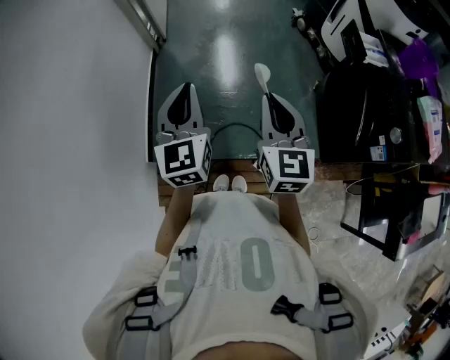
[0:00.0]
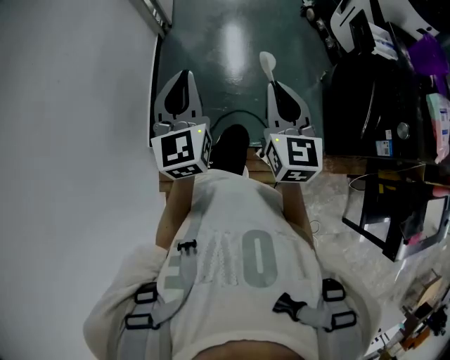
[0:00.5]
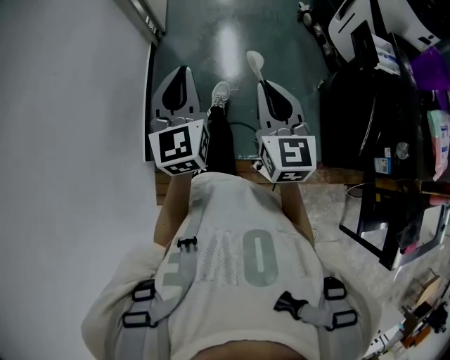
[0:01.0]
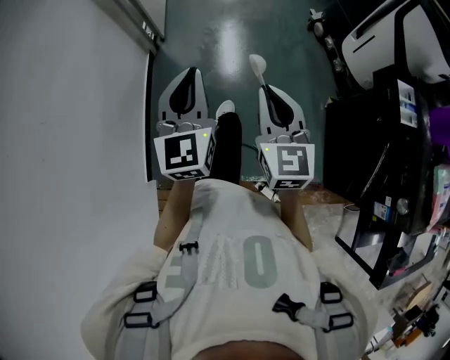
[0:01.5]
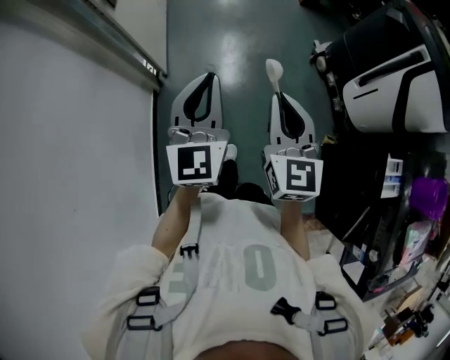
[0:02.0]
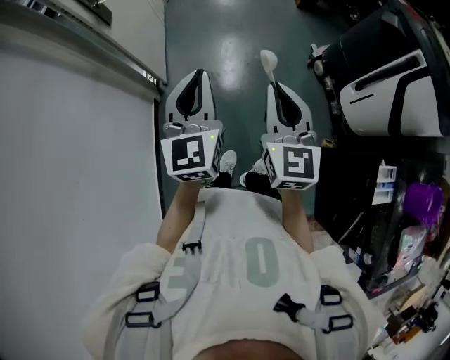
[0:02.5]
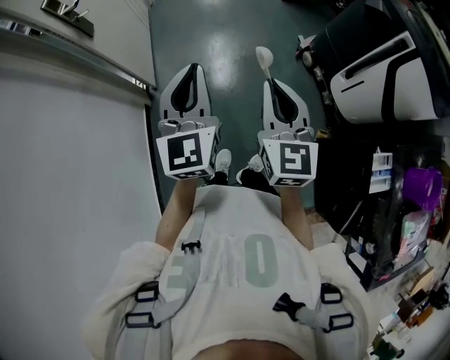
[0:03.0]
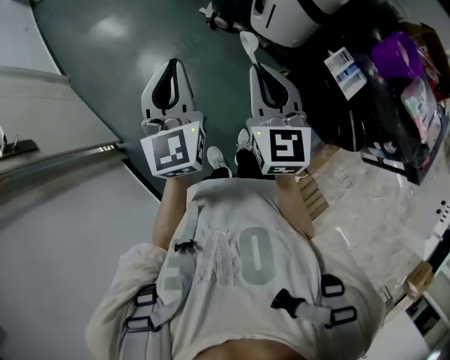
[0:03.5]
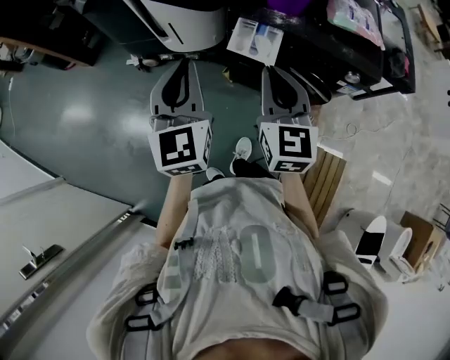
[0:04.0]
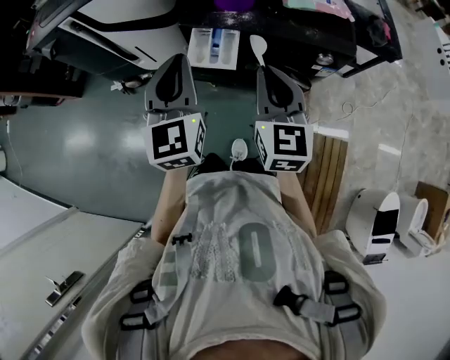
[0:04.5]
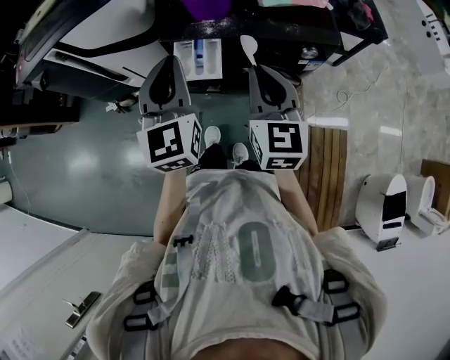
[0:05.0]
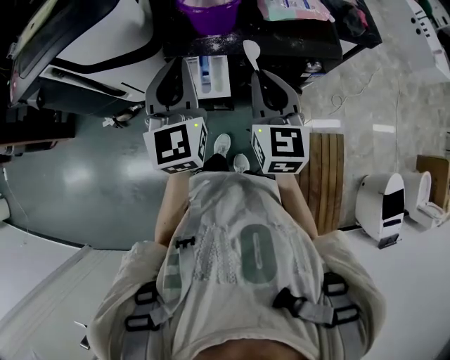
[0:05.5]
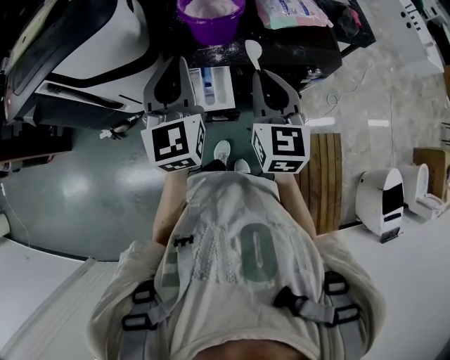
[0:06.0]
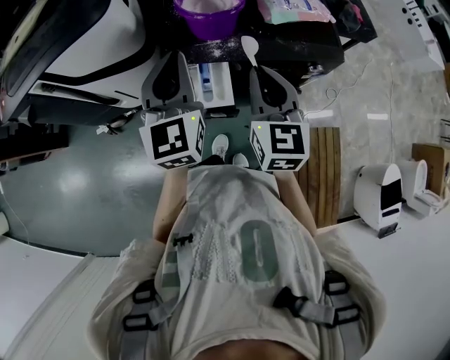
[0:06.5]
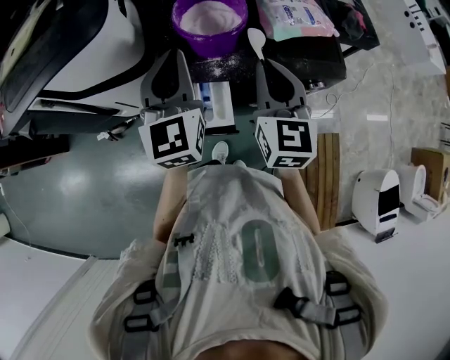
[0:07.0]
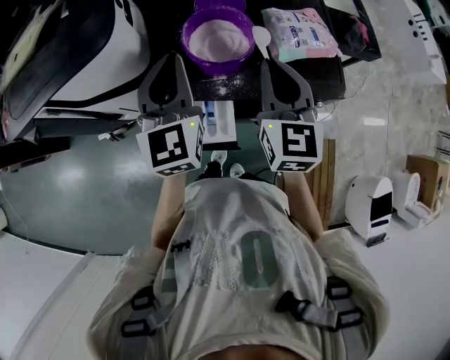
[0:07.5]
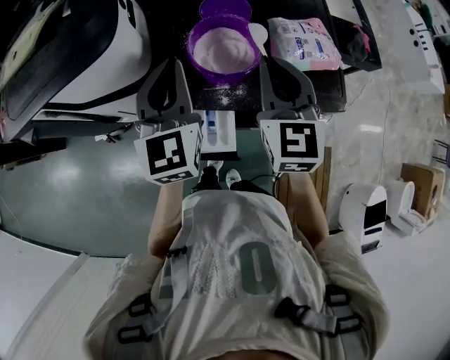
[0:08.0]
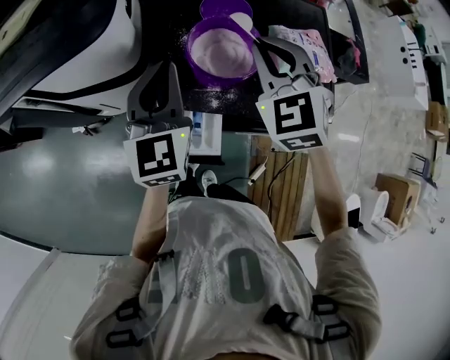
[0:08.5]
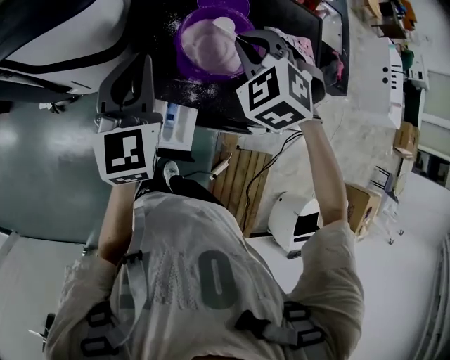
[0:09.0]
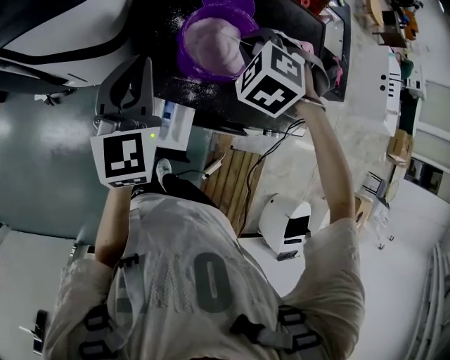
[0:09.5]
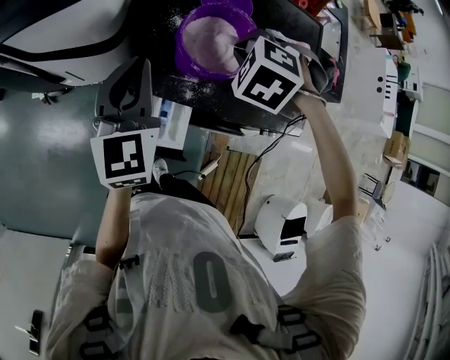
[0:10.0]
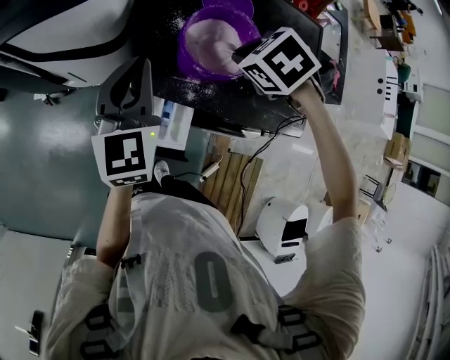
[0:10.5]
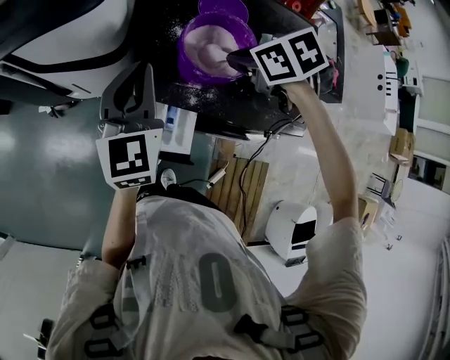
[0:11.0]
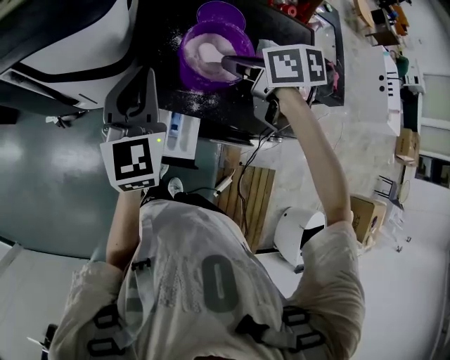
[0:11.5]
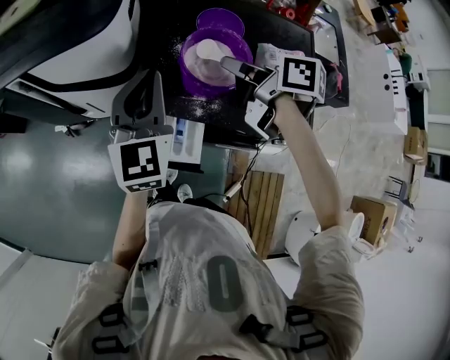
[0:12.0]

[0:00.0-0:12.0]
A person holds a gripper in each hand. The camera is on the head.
0:00.0 to 0:02.0: The pair of grippers is taken forward, some 60 cm.
0:02.0 to 0:04.0: Both grippers are carried approximately 50 cm. The right gripper swivels roughly 70 degrees, while the left gripper changes its angle by some 70 degrees.
0:04.0 to 0:06.0: The two grippers go about 20 cm forward and to the right. The right gripper rotates some 20 degrees. The left gripper turns by roughly 20 degrees.
0:06.0 to 0:08.0: The left gripper heads forward, covering roughly 15 cm. The right gripper goes approximately 20 cm forward and upward.
0:08.0 to 0:10.0: The right gripper shifts about 15 cm downward and forward, and tilts its fingers roughly 60 degrees downward; the left gripper shifts approximately 5 cm downward.
0:10.0 to 0:12.0: Both grippers travel together upward, some 5 cm. The right gripper rotates around the line of its fingers by some 90 degrees, clockwise from behind.

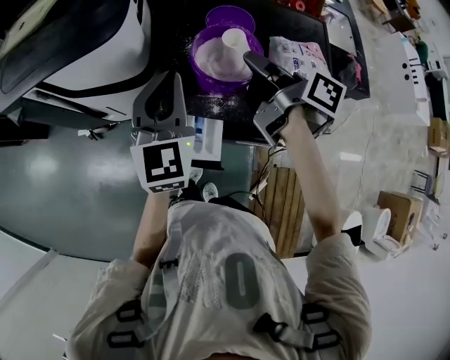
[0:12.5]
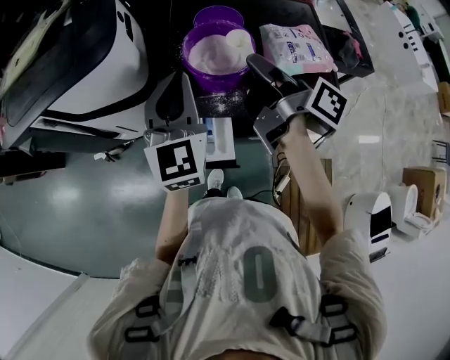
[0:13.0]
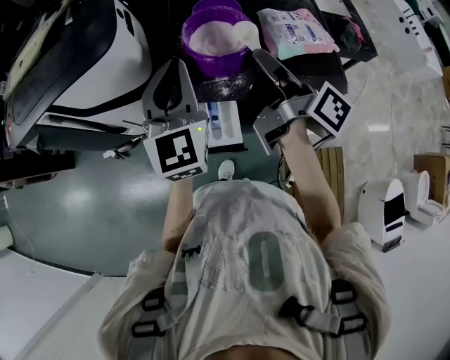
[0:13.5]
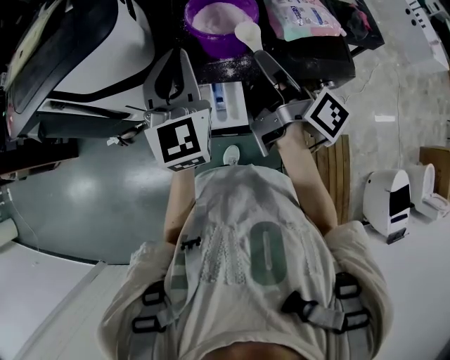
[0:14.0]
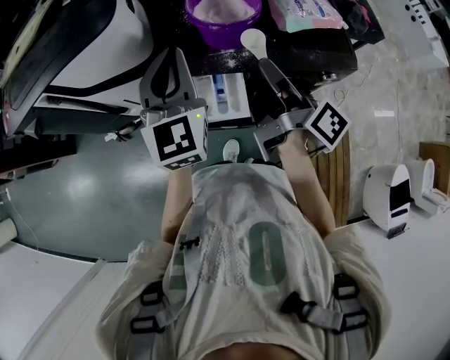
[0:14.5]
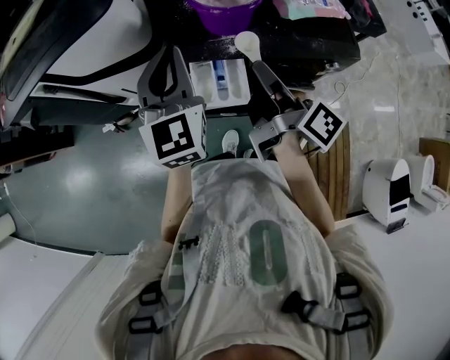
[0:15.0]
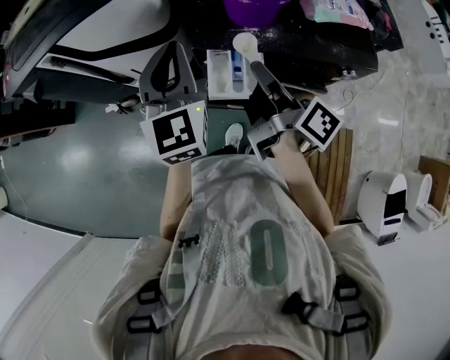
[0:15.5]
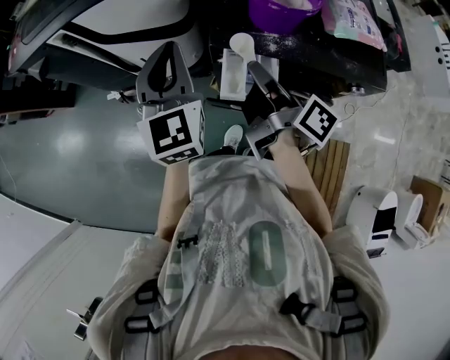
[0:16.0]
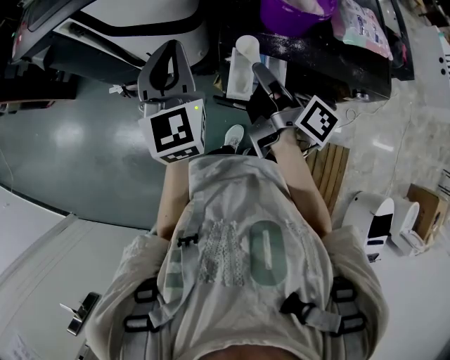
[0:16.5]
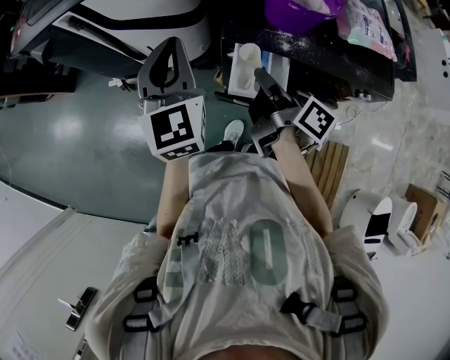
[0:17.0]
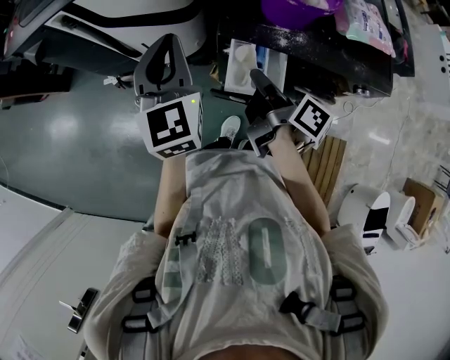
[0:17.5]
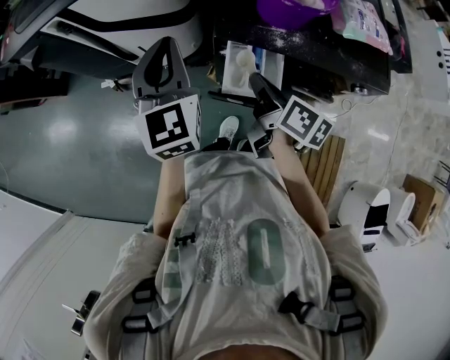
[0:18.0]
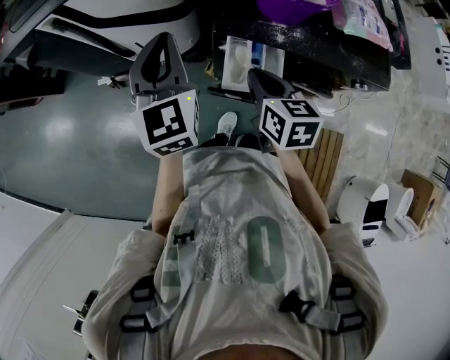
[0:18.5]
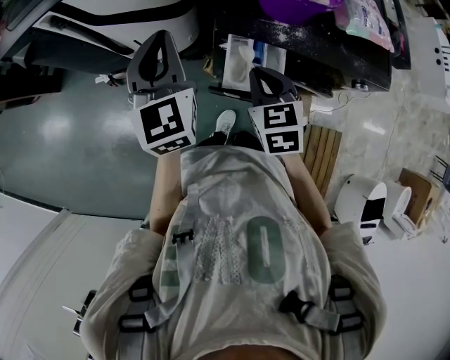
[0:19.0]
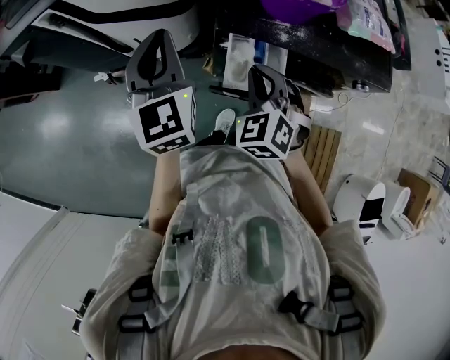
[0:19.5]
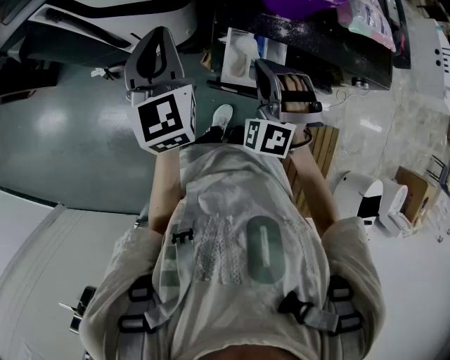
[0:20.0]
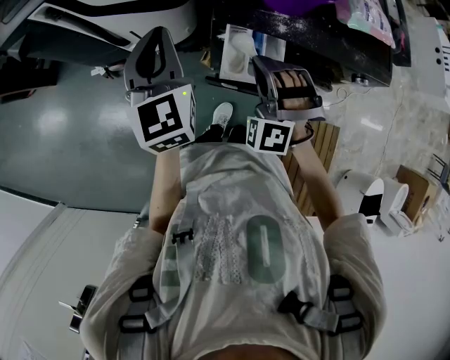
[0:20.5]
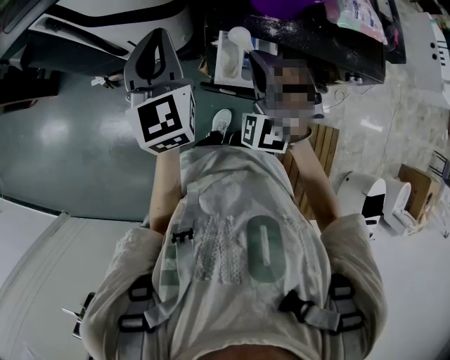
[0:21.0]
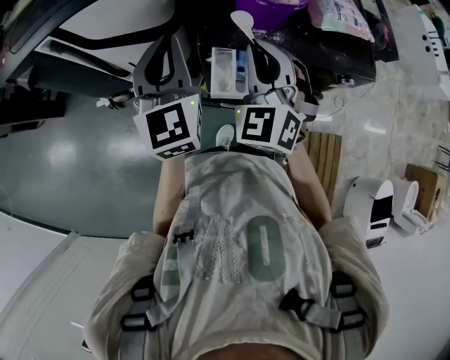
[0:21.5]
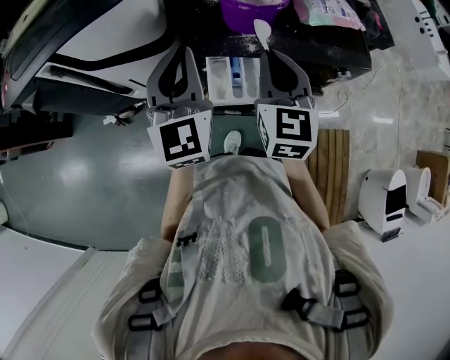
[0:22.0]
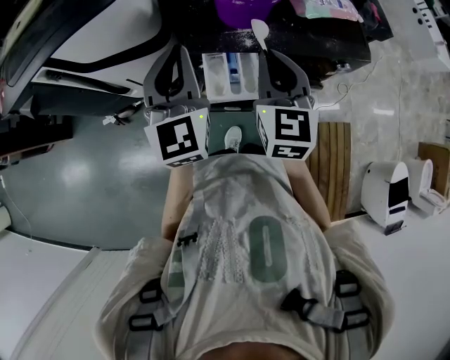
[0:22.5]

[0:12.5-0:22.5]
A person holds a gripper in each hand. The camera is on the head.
0:12.5 to 0:14.5: The left gripper moves backward, some 5 cm; the right gripper travels backward by some 15 cm, and swivels roughly 30 degrees.
0:14.5 to 0:16.5: The left gripper goes some 15 cm to the left. Meanwhile the right gripper is displaced to the left and downward by some 15 cm.
0:16.5 to 0:18.5: The right gripper shifts about 5 cm downward, and rotates around the line of its fingers by some 50 degrees, counterclockwise from behind.
0:18.5 to 0:20.5: The right gripper twists roughly 100 degrees counterclockwise, seen from behind.
0:20.5 to 0:22.5: The left gripper goes roughly 10 cm to the right and upward. Meanwhile the right gripper heads upward and to the right, covering roughly 15 cm, and rotates around the line of its fingers by approximately 80 degrees, clockwise from behind.

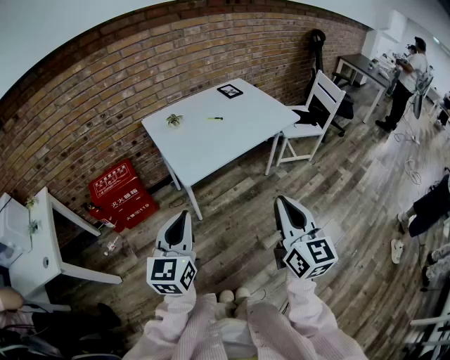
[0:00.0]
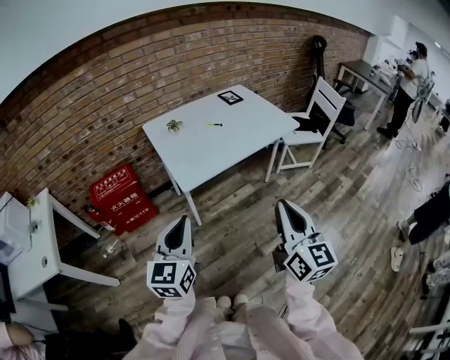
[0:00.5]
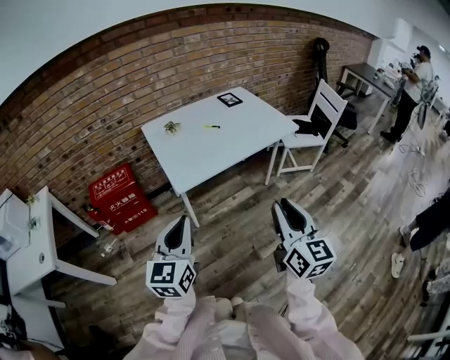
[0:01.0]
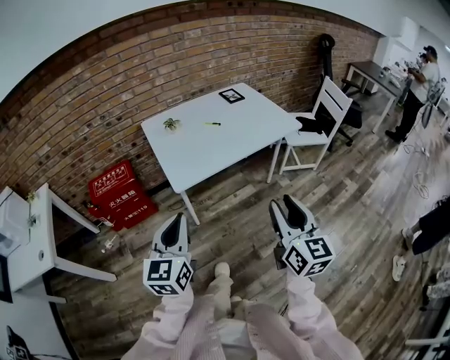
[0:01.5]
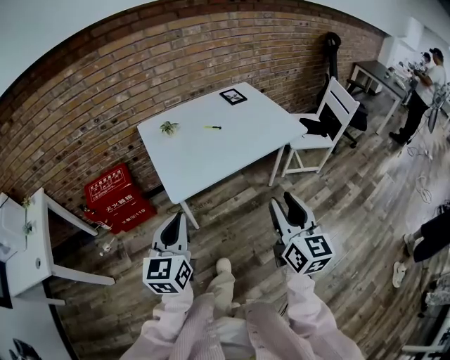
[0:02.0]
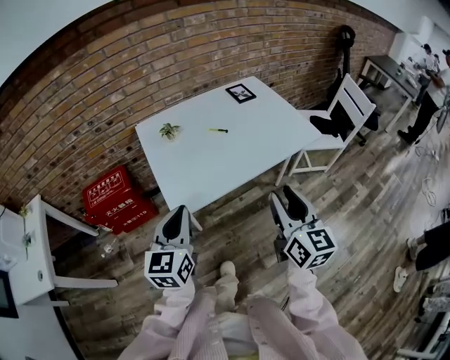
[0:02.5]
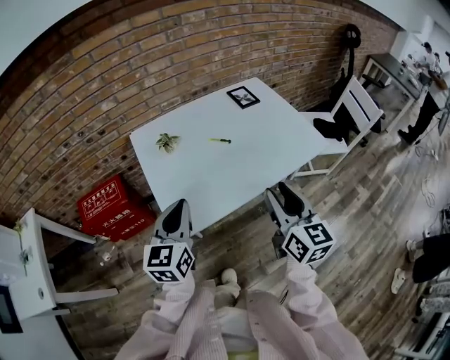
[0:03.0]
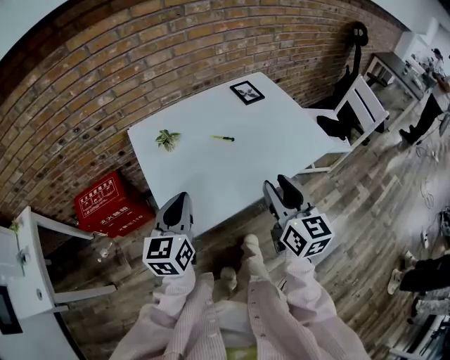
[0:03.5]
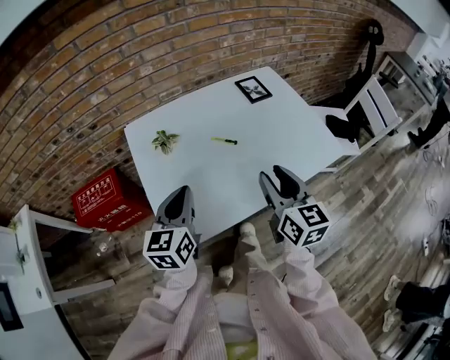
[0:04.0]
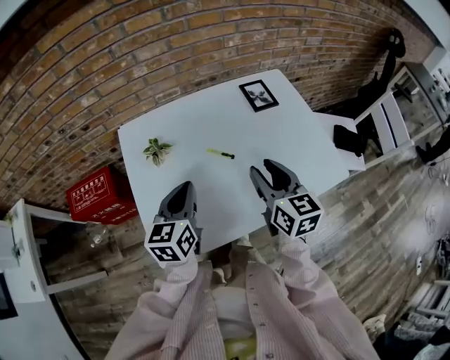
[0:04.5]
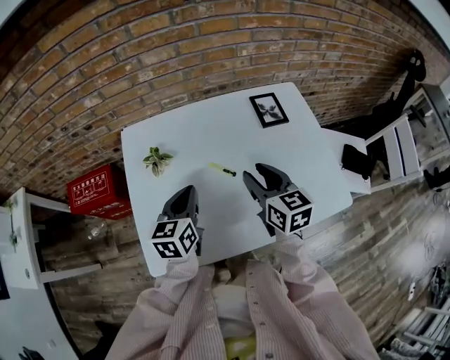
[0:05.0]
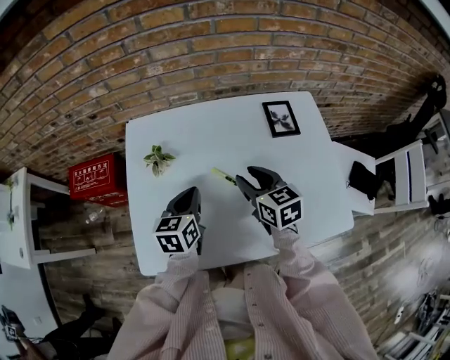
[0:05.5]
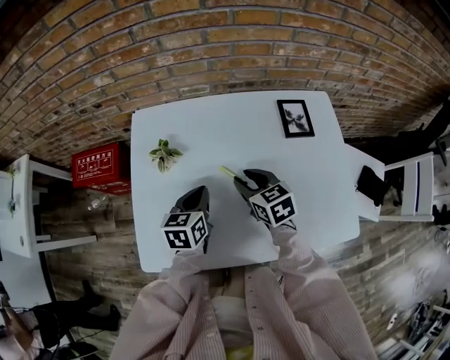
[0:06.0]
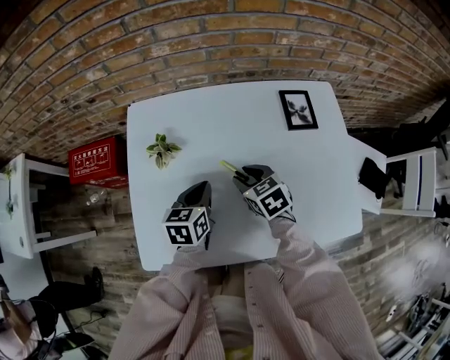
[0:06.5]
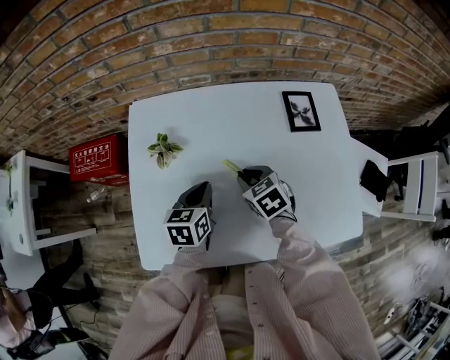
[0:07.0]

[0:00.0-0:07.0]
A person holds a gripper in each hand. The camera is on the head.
0:00.0 to 0:02.0: The two grippers go about 15 cm forward and to the right. The right gripper opens its fingers.
0:02.0 to 0:03.5: The two grippers go approximately 25 cm forward.
0:03.5 to 0:05.0: The right gripper shifts approximately 25 cm forward, and swivels some 30 degrees. The left gripper heads forward, downward and to the right, covering approximately 20 cm.
0:05.0 to 0:07.0: The right gripper travels downward and forward by approximately 15 cm, and points its fingers some 30 degrees further downward. Meanwhile the left gripper heads downward, covering approximately 10 cm.
